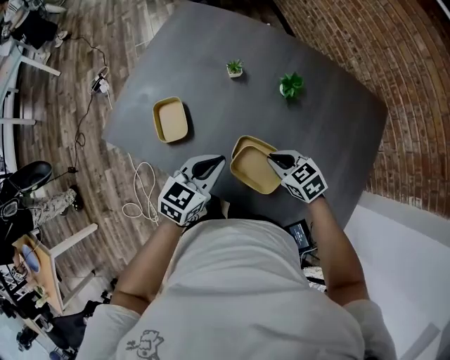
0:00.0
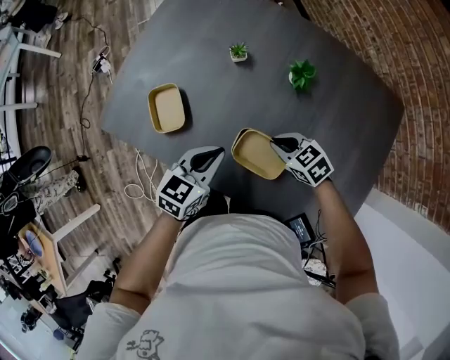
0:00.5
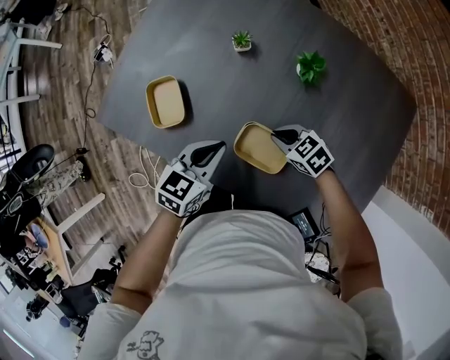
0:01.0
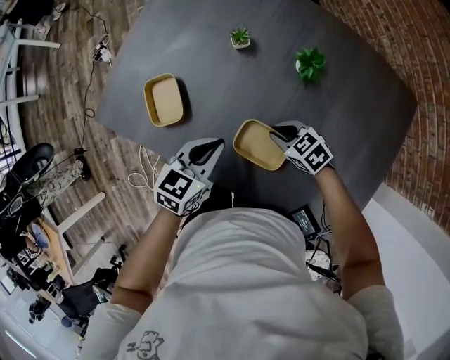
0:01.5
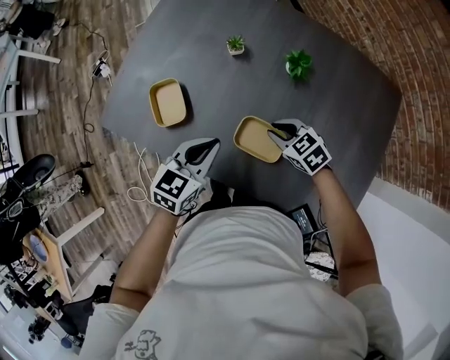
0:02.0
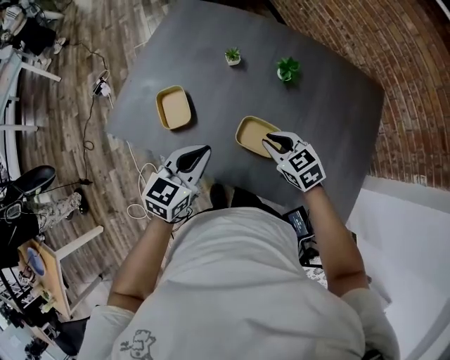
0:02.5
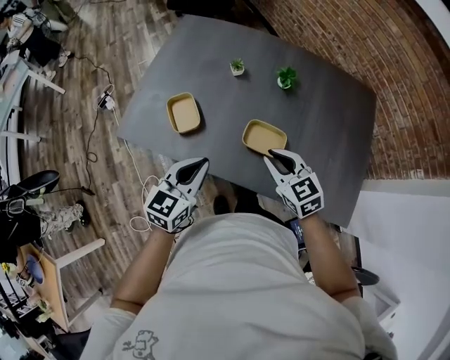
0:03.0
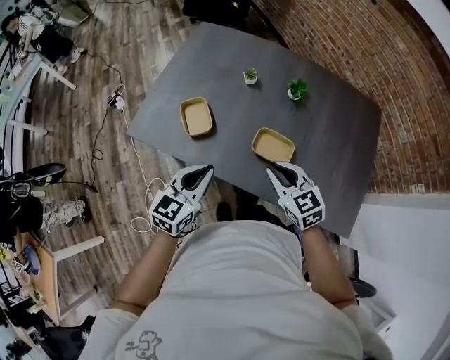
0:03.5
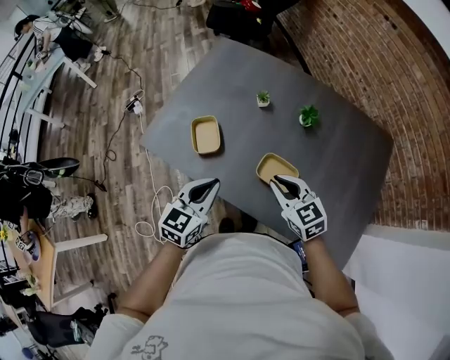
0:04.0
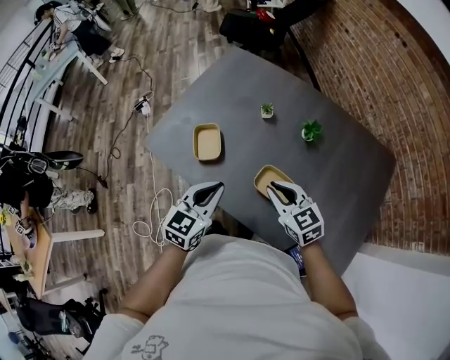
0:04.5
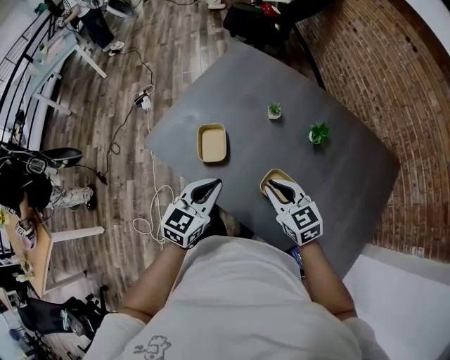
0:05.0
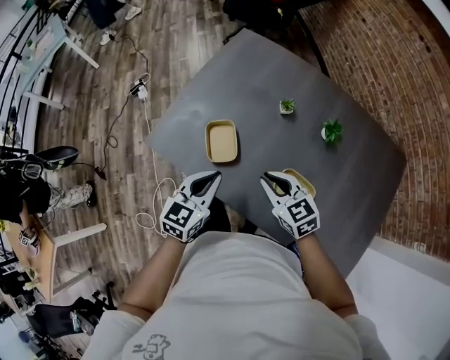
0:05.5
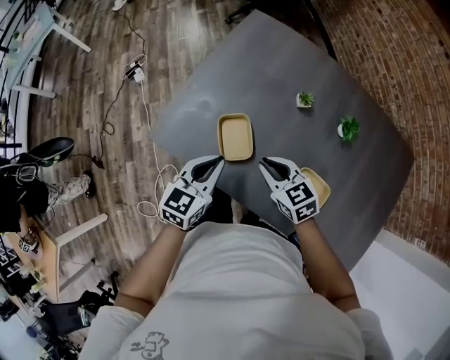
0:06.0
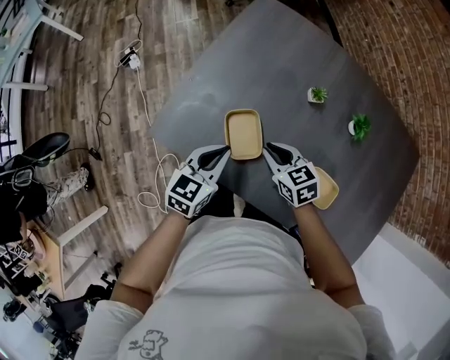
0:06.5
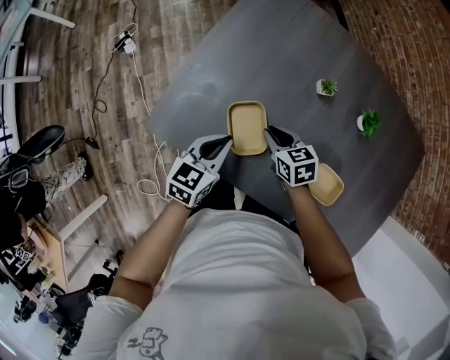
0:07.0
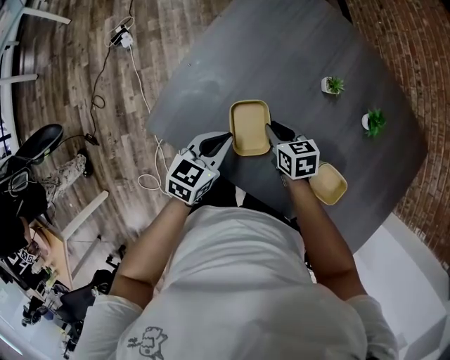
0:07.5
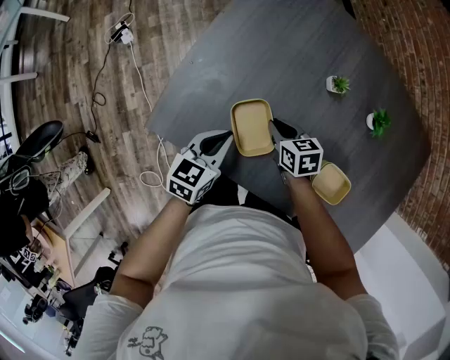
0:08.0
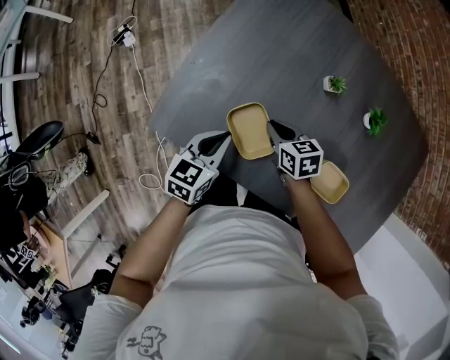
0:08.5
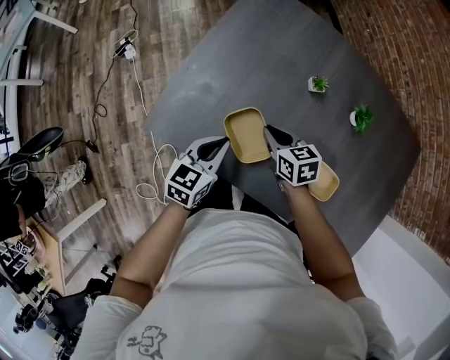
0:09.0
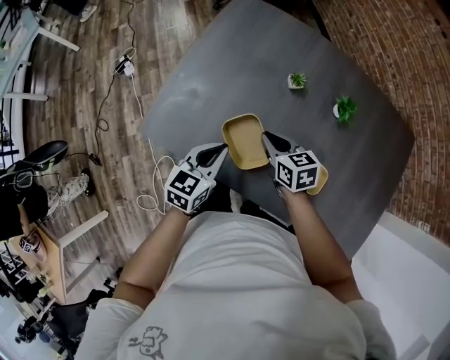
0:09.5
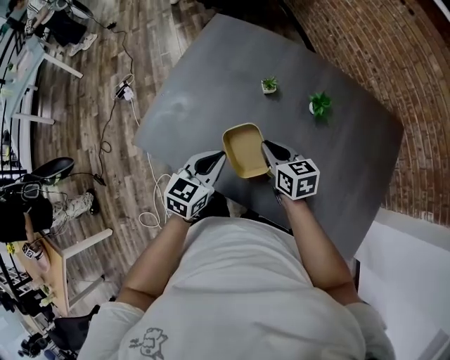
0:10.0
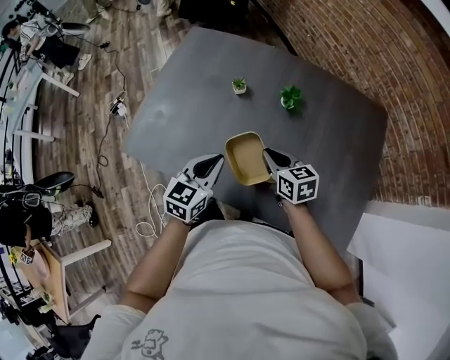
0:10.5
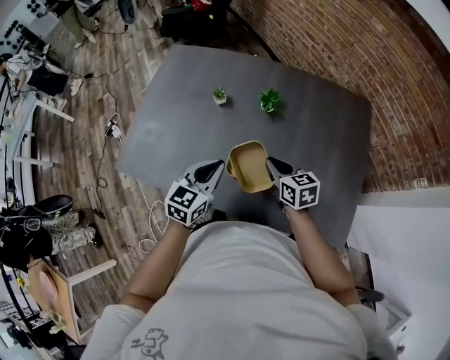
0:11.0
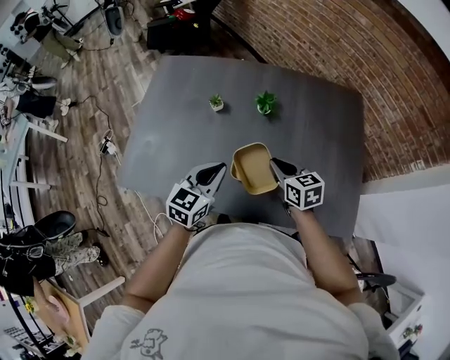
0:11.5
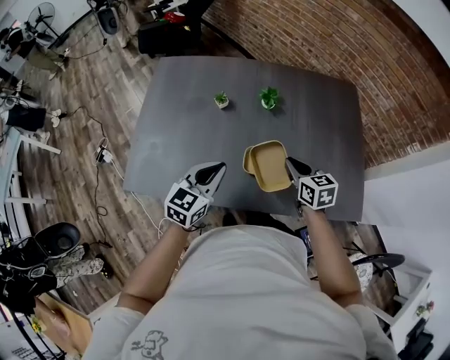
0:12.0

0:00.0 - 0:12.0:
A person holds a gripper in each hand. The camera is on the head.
0:00.0 - 0:02.0: The right gripper travels downward and back again, some 10 cm each way.
0:02.0 - 0:04.0: The left gripper heads backward, to the left and upward, covering some 15 cm, while the right gripper goes approximately 20 cm upward, backward and to the left, and rotates approximately 30 degrees.
0:04.0 - 0:06.0: The right gripper shifts roughly 25 cm to the left, forward and downward; the left gripper moves forward and to the left, approximately 20 cm.
0:06.0 - 0:08.0: Both grippers move downward and forward, some 15 cm. The right gripper rotates about 30 degrees.
0:08.0 - 0:10.0: The right gripper goes roughly 25 cm upward, to the right and backward; the left gripper heads to the right, upward and backward, covering about 20 cm.
0:10.0 - 0:12.0: The right gripper goes some 20 cm to the right and backward, and rotates some 20 degrees; the left gripper moves to the right and upward, some 10 cm, and swivels some 20 degrees.

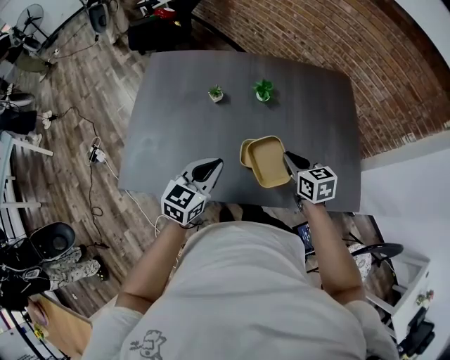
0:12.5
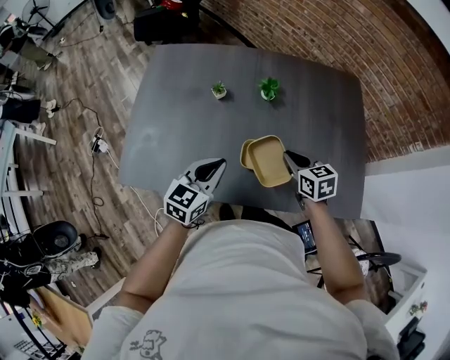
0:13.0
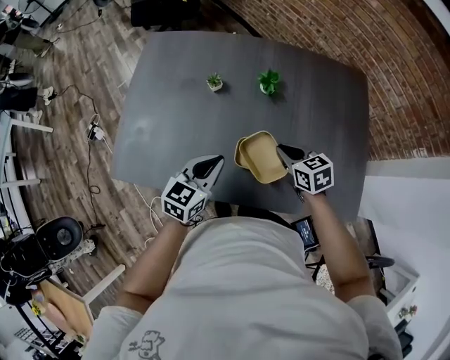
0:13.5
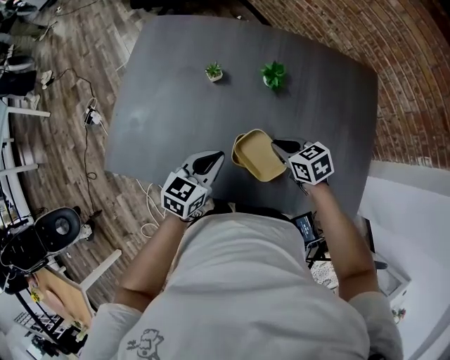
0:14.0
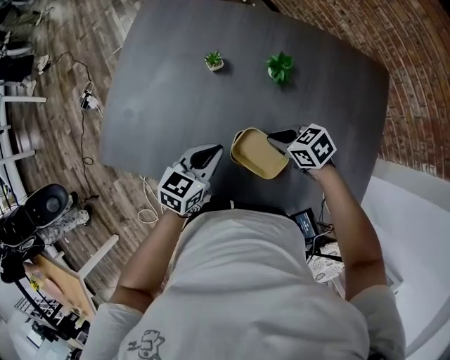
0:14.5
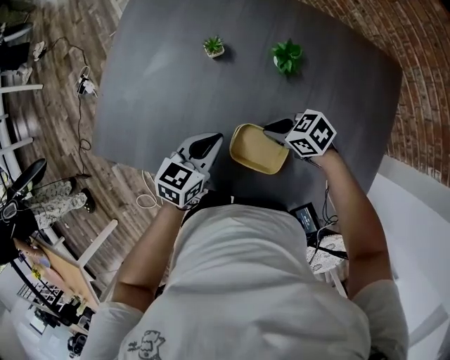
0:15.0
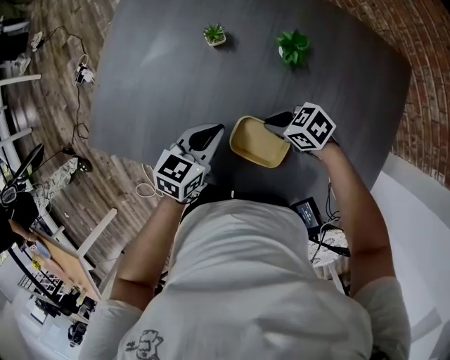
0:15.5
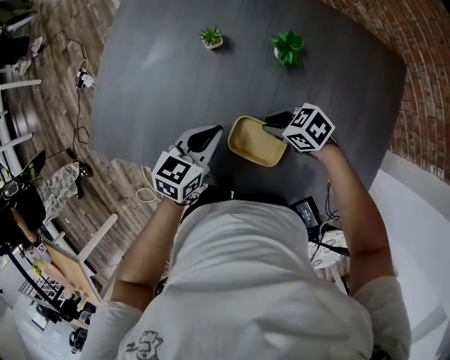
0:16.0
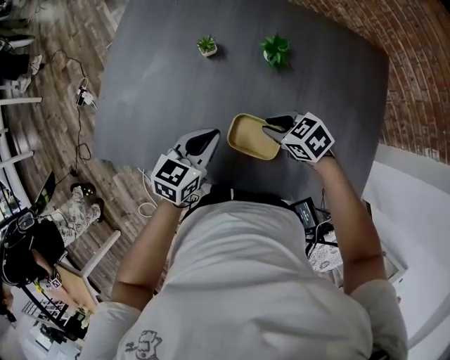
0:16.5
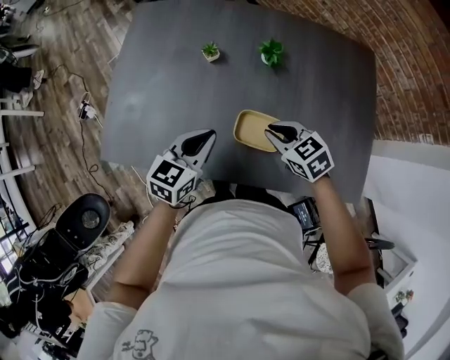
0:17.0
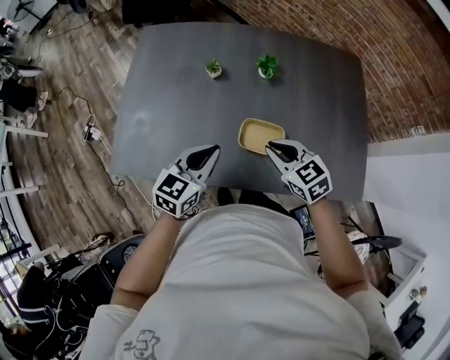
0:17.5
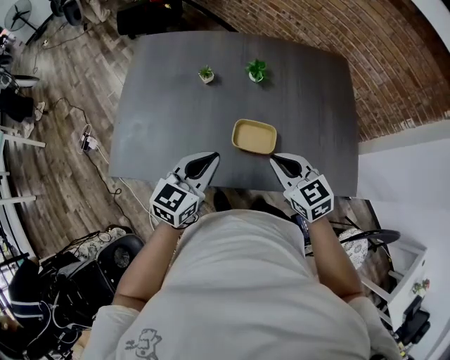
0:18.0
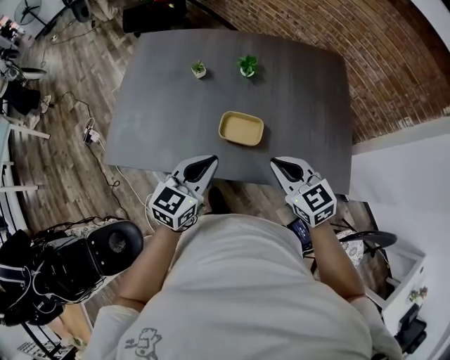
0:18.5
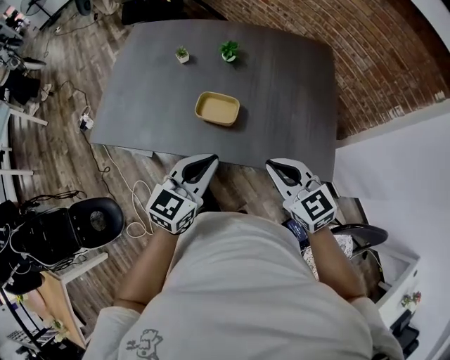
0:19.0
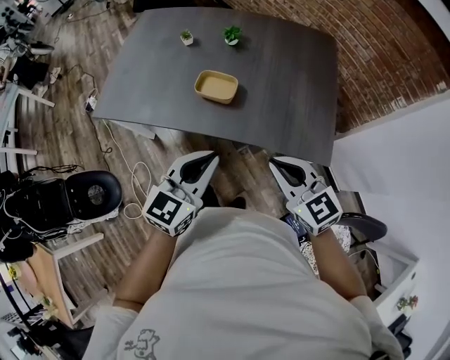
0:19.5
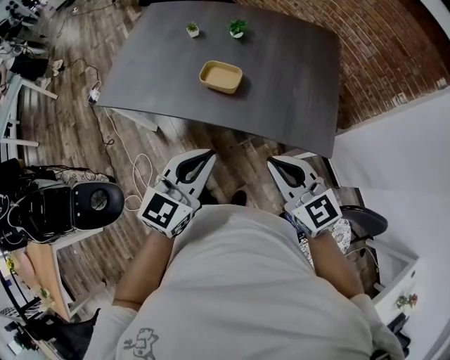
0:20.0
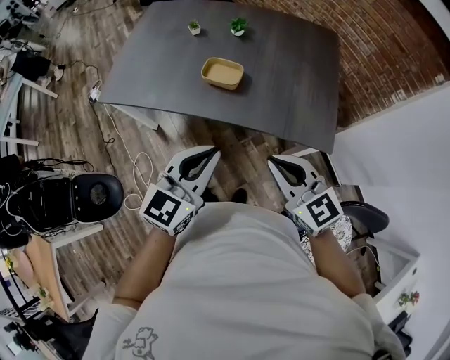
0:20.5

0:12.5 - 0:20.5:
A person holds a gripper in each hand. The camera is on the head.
0:12.5 - 0:14.5: The grippers both shift downward by some 10 cm. The right gripper changes its angle by roughly 50 degrees.
0:14.5 - 0:16.5: The grippers make only small movements.
0:16.5 - 0:18.5: Both grippers move backward and upward, some 25 cm. The right gripper swivels about 40 degrees.
0:18.5 - 0:20.5: The right gripper is displaced backward by about 20 cm. Meanwhile the left gripper travels backward and to the right by some 25 cm.

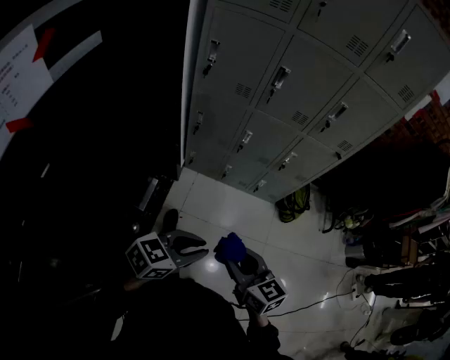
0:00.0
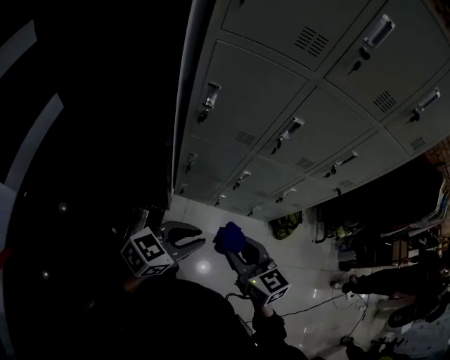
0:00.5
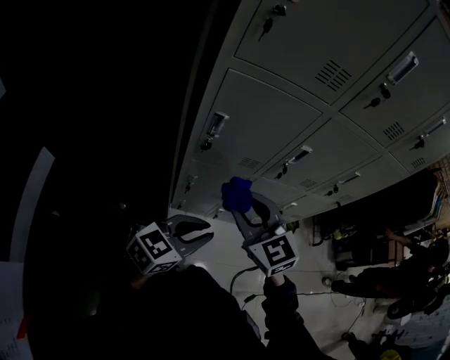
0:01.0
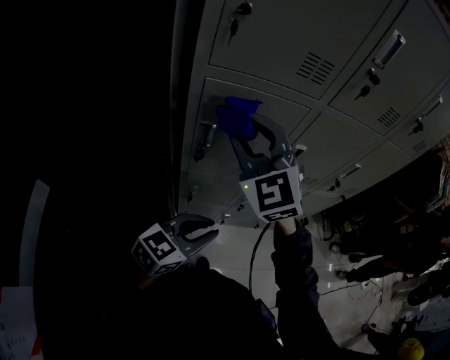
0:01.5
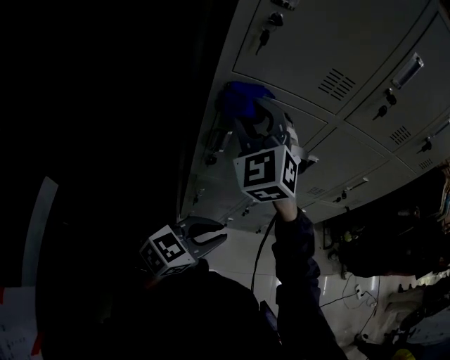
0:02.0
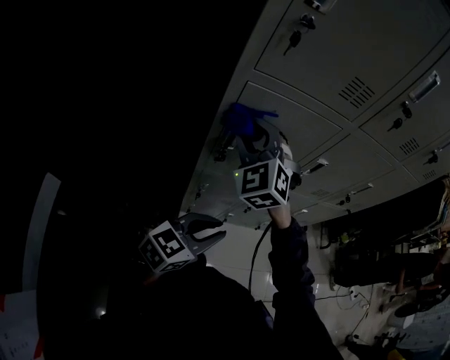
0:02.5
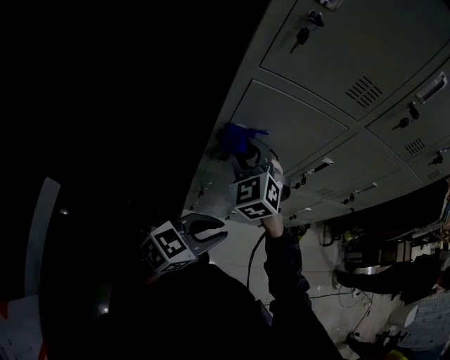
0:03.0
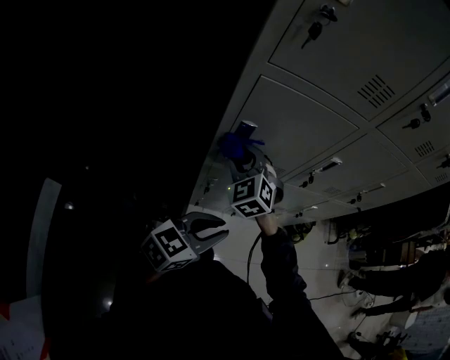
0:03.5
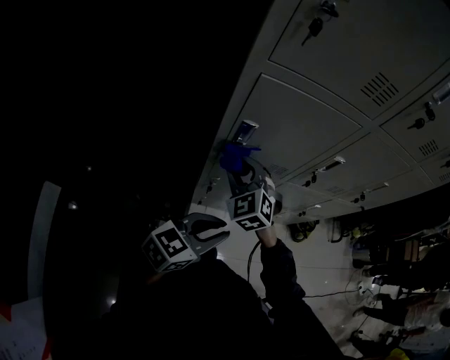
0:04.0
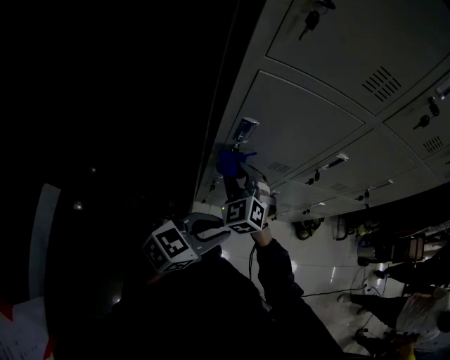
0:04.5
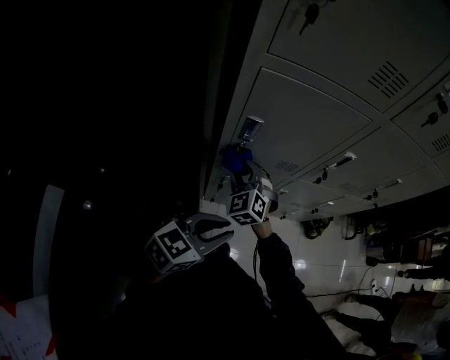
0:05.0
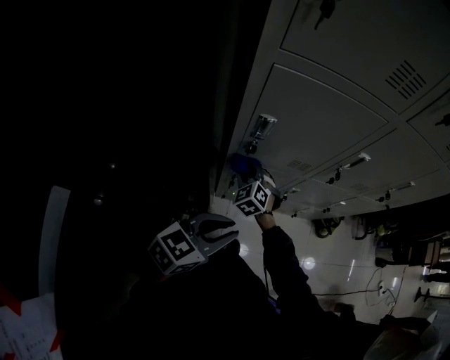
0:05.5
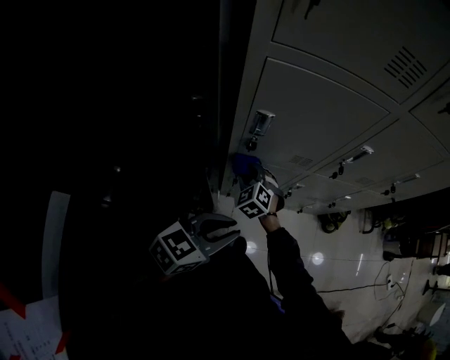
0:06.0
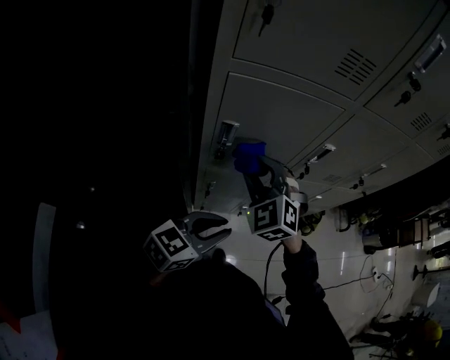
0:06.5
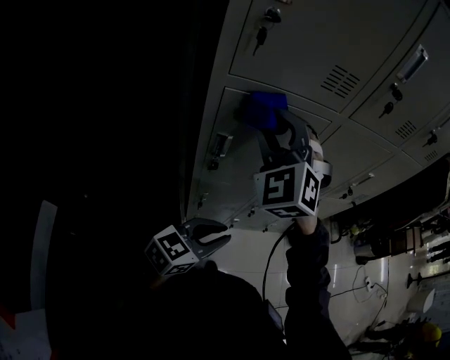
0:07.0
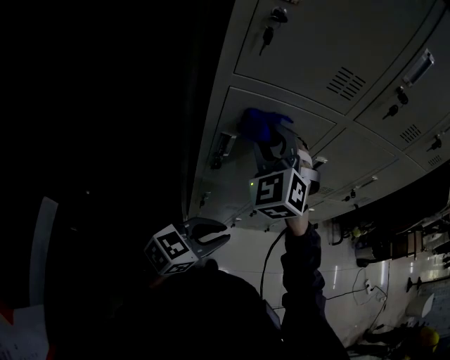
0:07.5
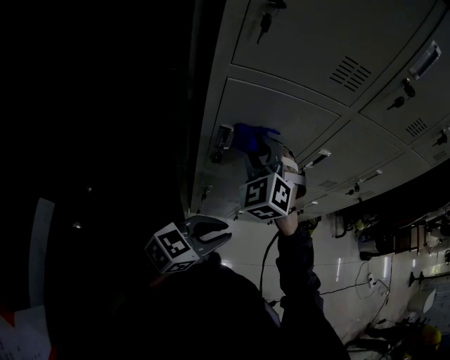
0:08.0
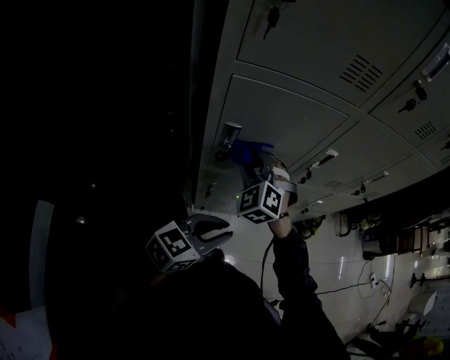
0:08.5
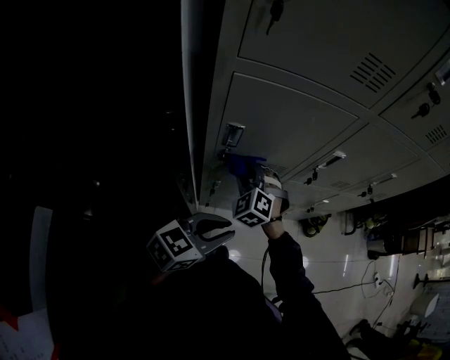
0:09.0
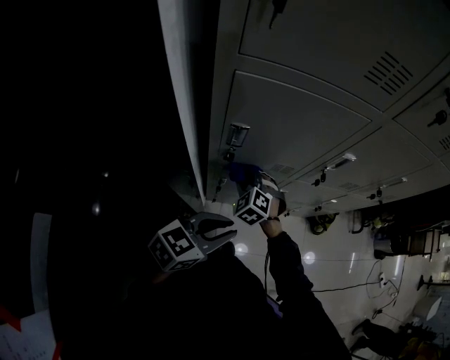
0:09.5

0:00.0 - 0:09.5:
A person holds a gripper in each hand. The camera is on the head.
0:00.0 - 0:02.0: Both grippers are carried forward and to the left, roughly 50 cm. The right gripper heads upward, covering some 30 cm, and rotates around the line of its fingers by about 70 degrees, counterclockwise from behind.
0:02.0 - 0:04.0: The left gripper moves about 5 cm; the right gripper travels downward by roughly 25 cm, and rotates about 30 degrees.
0:04.0 - 0:05.5: The right gripper goes about 15 cm downward.
0:05.5 - 0:07.5: The left gripper shifts by approximately 5 cm. The right gripper moves upward, some 35 cm, and swivels about 30 degrees.
0:07.5 - 0:09.5: The right gripper is displaced downward by roughly 35 cm, and angles its fingers downward, by some 30 degrees.
